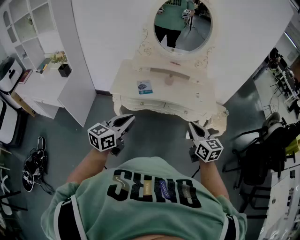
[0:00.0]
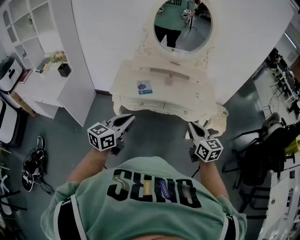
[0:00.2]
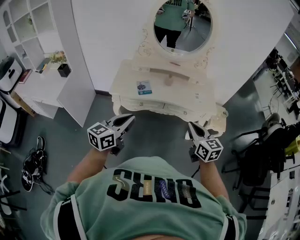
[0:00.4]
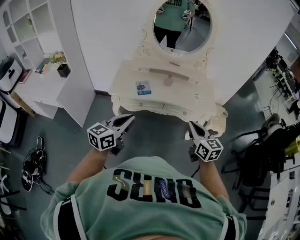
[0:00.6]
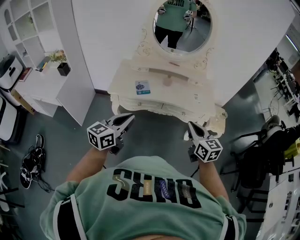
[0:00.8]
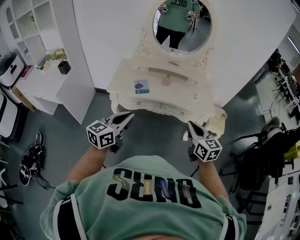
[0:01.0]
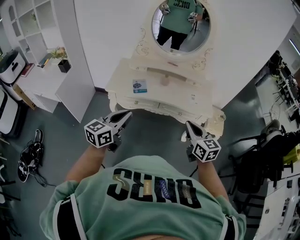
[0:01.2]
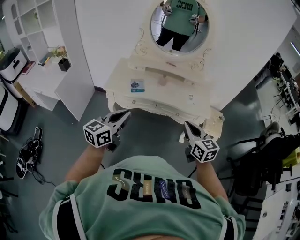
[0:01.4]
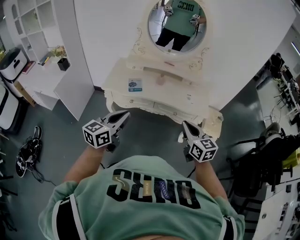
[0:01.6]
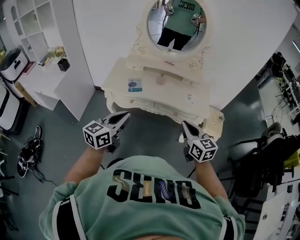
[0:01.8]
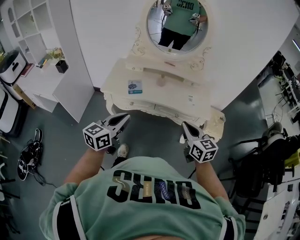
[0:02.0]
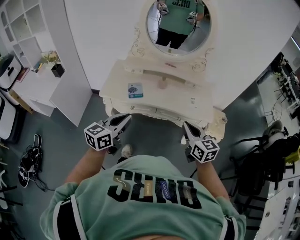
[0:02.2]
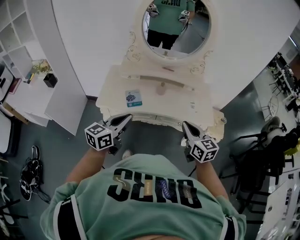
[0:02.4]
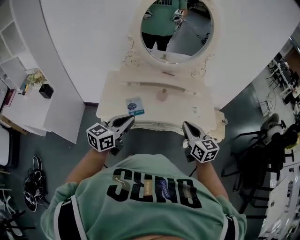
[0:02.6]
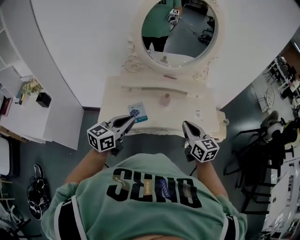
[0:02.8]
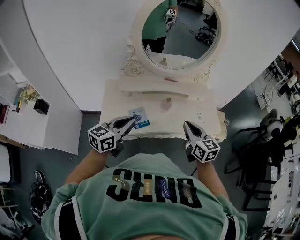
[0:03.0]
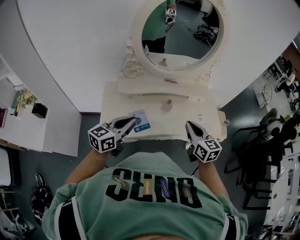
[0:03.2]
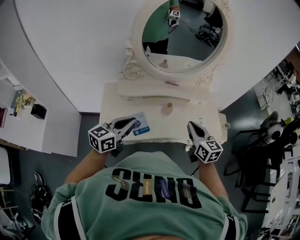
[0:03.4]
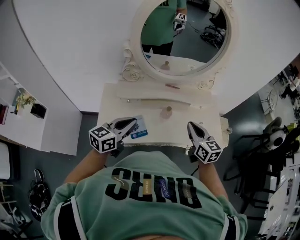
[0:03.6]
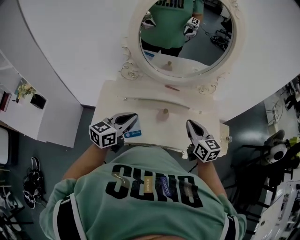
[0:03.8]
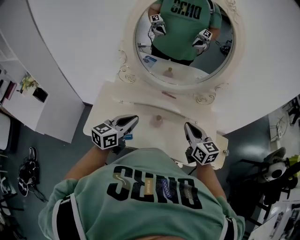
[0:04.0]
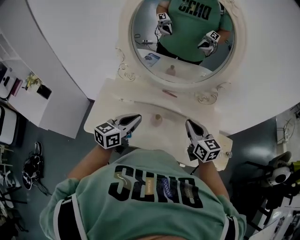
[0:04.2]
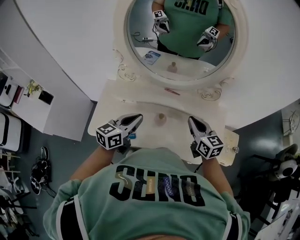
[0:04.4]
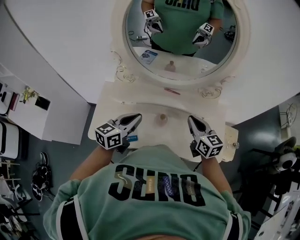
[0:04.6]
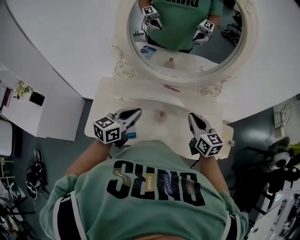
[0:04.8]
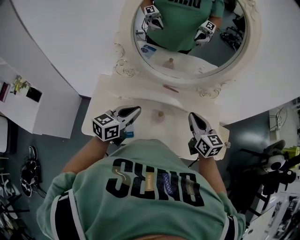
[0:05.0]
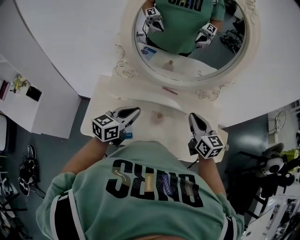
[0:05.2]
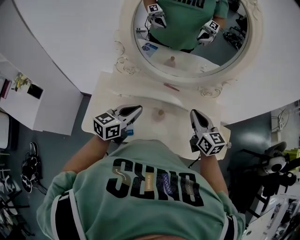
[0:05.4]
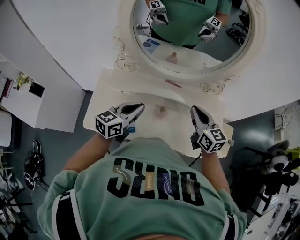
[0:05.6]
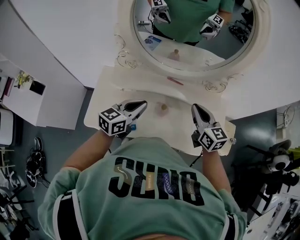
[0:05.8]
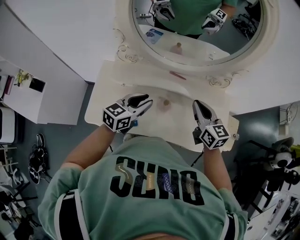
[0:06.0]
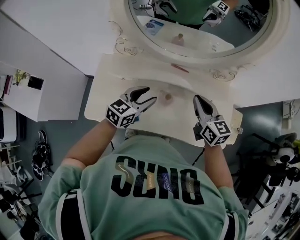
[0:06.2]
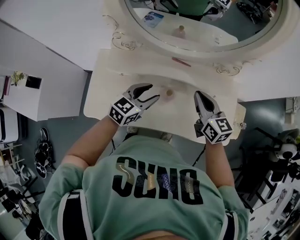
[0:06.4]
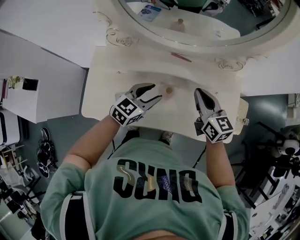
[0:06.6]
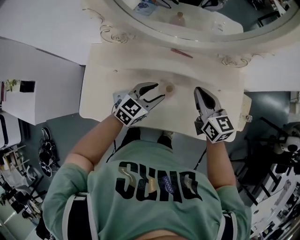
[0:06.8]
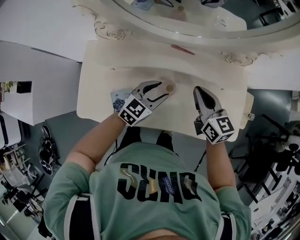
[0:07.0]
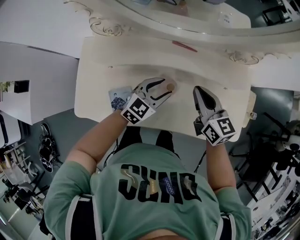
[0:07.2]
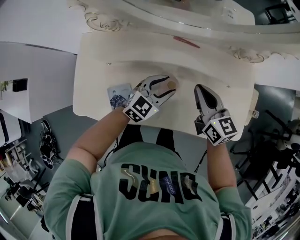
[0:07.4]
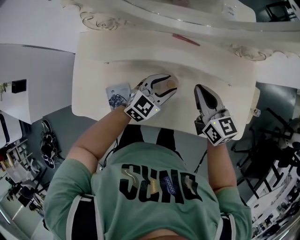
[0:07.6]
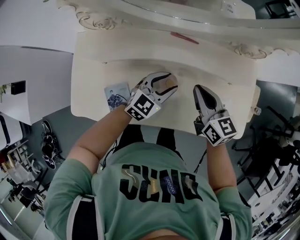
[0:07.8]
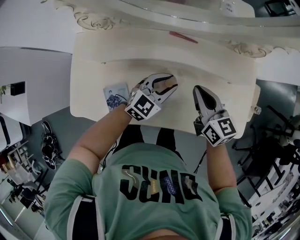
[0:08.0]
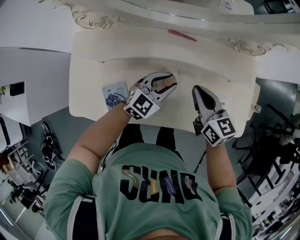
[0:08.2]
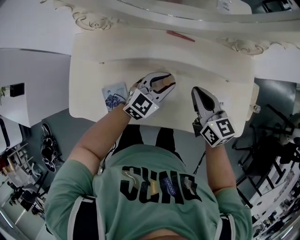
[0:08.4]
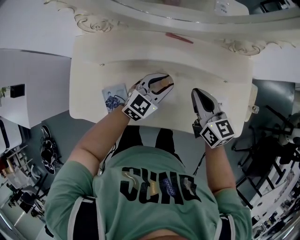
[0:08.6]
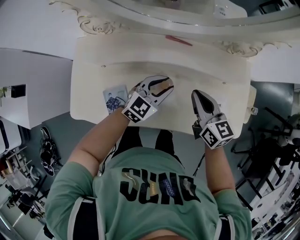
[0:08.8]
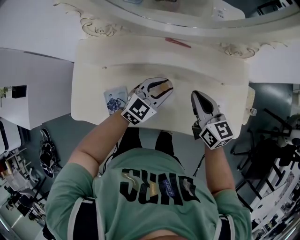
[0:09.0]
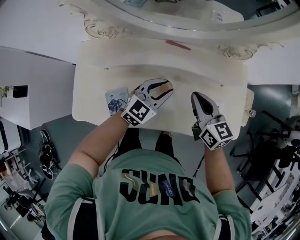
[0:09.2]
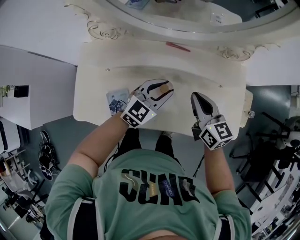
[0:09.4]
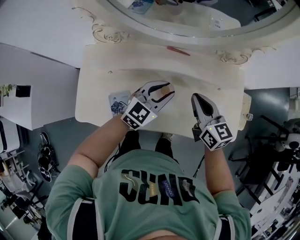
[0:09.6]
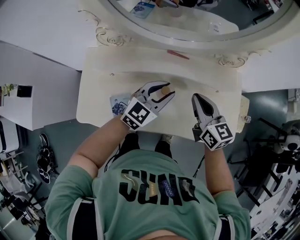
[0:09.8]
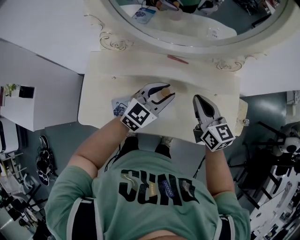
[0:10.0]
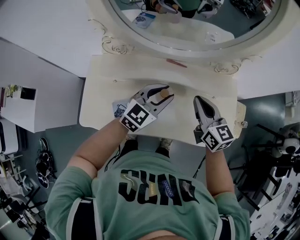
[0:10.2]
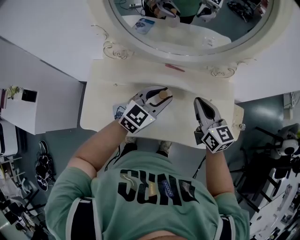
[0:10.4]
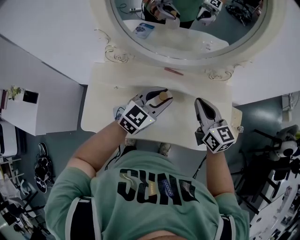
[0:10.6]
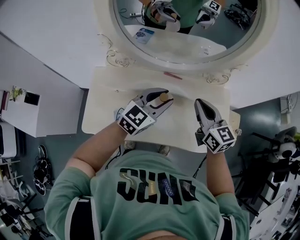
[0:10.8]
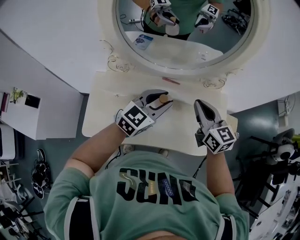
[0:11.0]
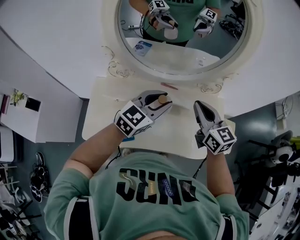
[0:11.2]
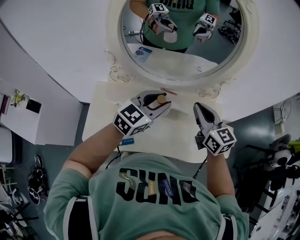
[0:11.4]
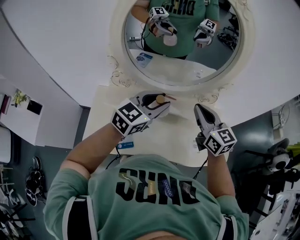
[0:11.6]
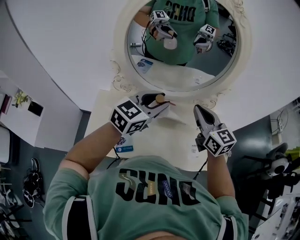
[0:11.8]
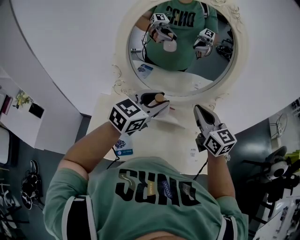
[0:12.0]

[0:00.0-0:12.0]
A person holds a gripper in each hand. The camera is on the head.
0:00.0 to 0:01.6: The two grippers go roughly 10 cm to the right.
0:01.6 to 0:03.0: The grippers both shift forward and to the left by about 35 cm.
0:03.0 to 0:04.4: The two grippers go approximately 25 cm forward and to the right.
0:04.4 to 0:06.0: The left gripper shifts by roughly 5 cm, and opens.
0:06.0 to 0:07.6: The right gripper travels downward by approximately 15 cm, while the left gripper moves downward and to the right, some 20 cm, turns by approximately 20 degrees, and opens its fingers.
0:07.6 to 0:09.0: The grippers move only a little.
0:09.0 to 0:10.4: The two grippers go approximately 15 cm upward.
0:10.4 to 0:12.0: The grippers both shift upward by some 20 cm.

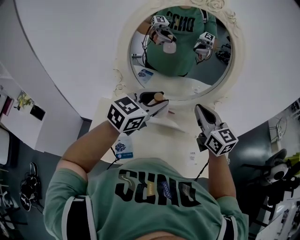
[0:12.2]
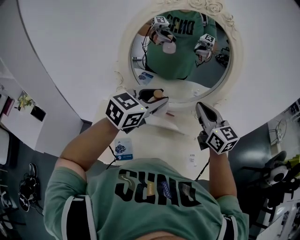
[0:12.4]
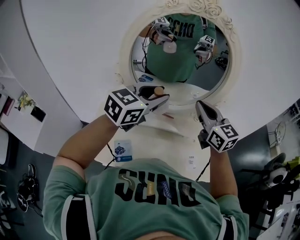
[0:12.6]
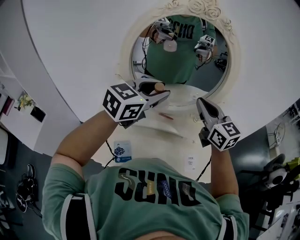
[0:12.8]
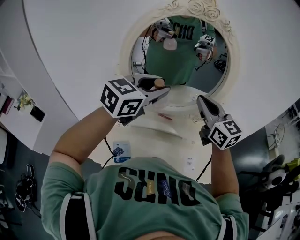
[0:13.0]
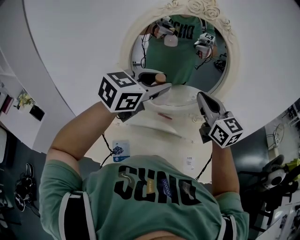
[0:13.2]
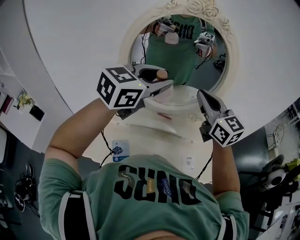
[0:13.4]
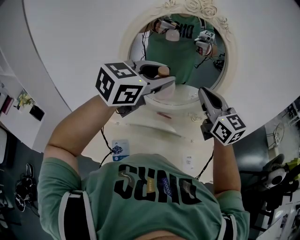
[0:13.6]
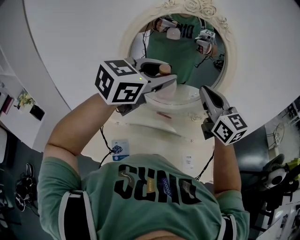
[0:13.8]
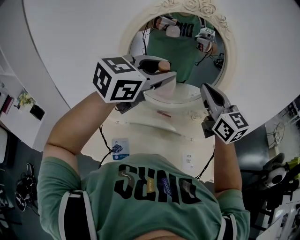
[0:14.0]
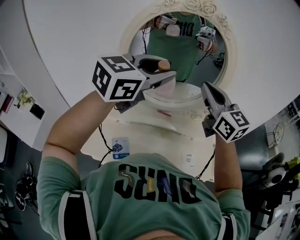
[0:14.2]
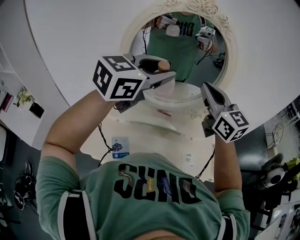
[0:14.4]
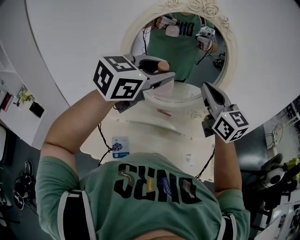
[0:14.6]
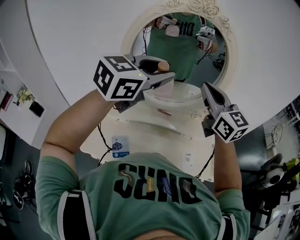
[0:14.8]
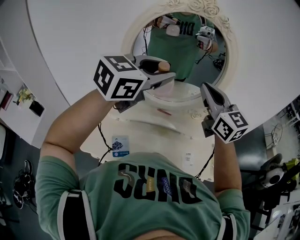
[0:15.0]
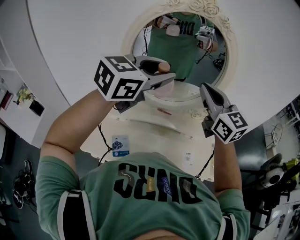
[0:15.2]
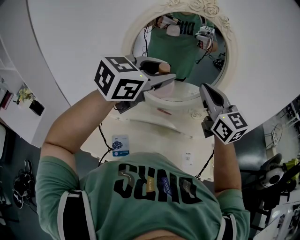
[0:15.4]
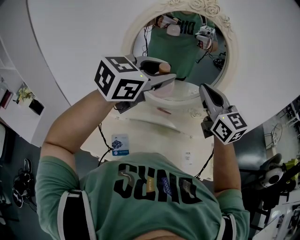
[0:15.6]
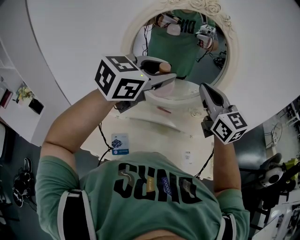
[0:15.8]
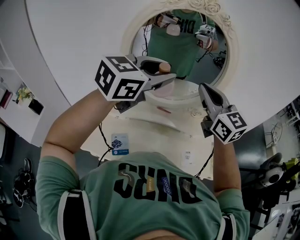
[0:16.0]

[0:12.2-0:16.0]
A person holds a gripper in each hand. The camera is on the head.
0:12.2 to 0:13.4: Both grippers move upward, roughly 10 cm.
0:13.4 to 0:14.8: The grippers make only small movements.
0:14.8 to 0:16.0: Both grippers stay put.

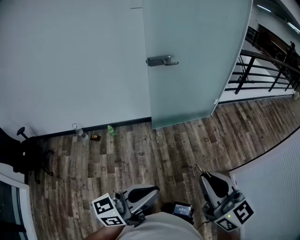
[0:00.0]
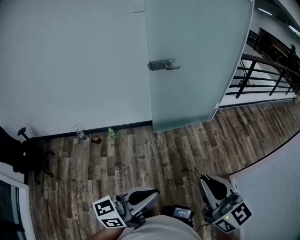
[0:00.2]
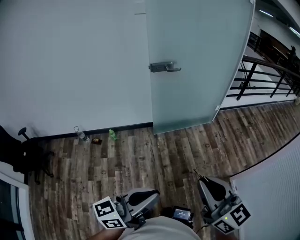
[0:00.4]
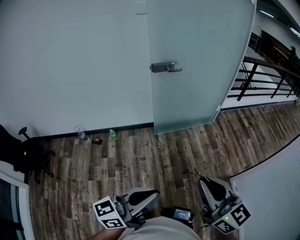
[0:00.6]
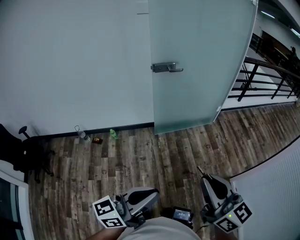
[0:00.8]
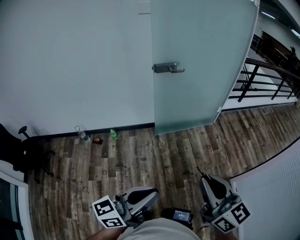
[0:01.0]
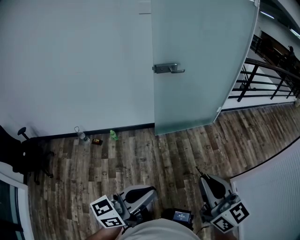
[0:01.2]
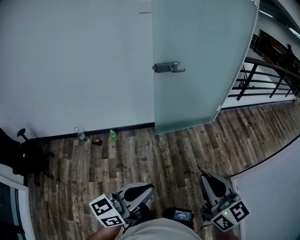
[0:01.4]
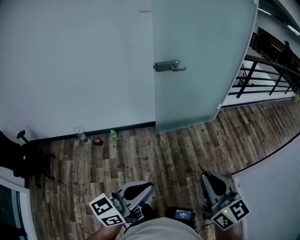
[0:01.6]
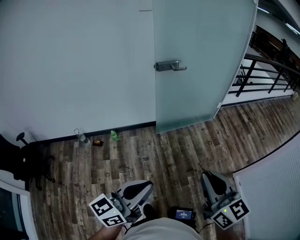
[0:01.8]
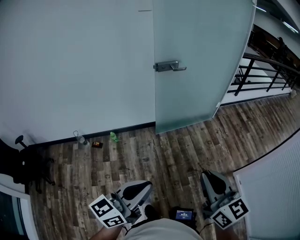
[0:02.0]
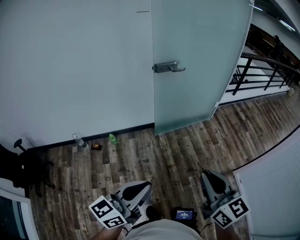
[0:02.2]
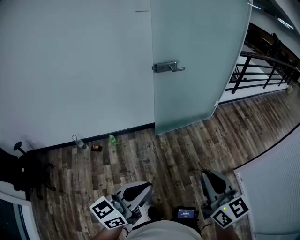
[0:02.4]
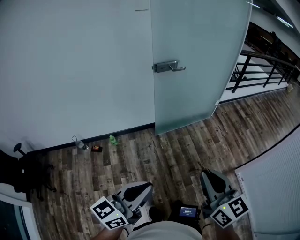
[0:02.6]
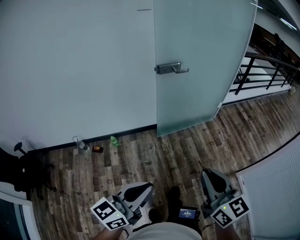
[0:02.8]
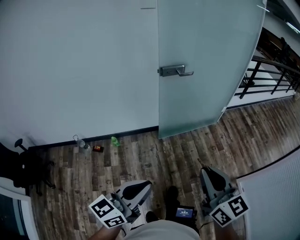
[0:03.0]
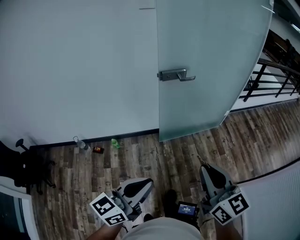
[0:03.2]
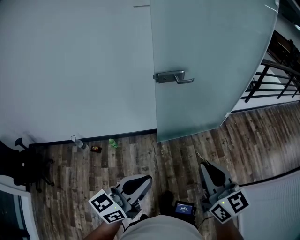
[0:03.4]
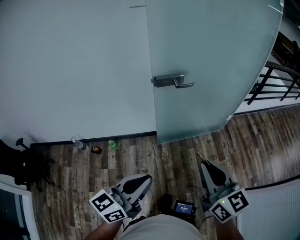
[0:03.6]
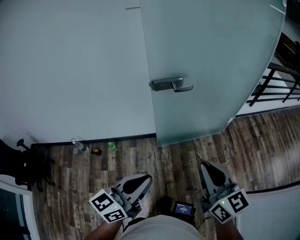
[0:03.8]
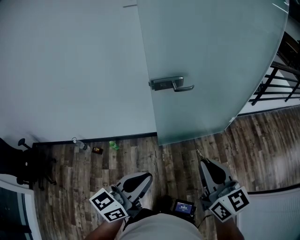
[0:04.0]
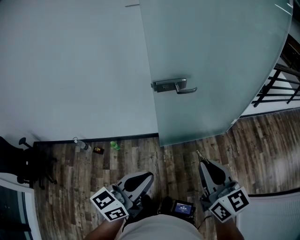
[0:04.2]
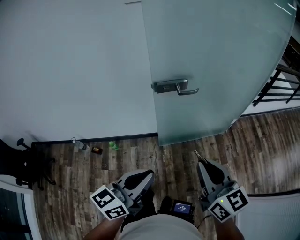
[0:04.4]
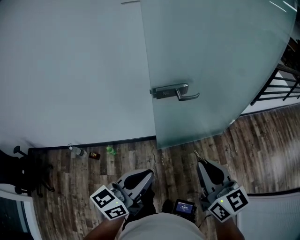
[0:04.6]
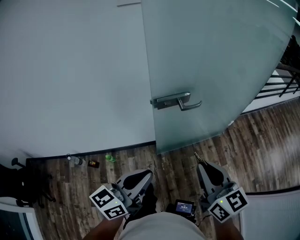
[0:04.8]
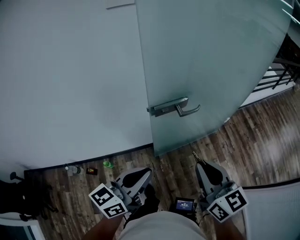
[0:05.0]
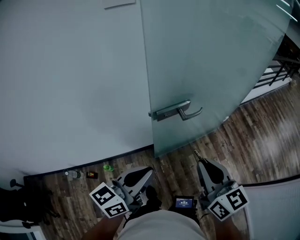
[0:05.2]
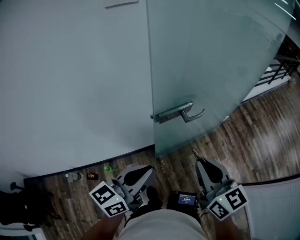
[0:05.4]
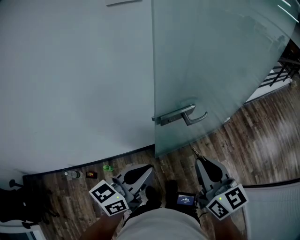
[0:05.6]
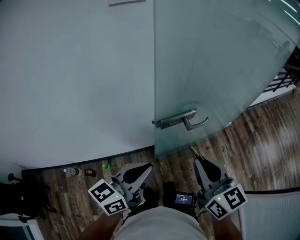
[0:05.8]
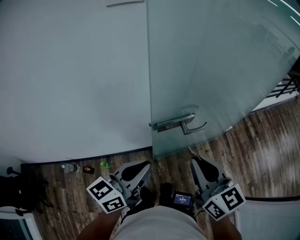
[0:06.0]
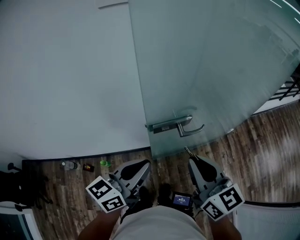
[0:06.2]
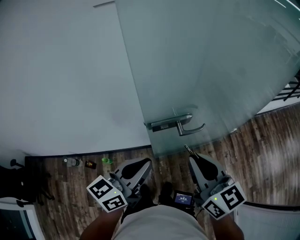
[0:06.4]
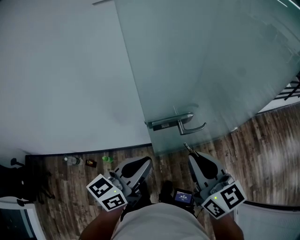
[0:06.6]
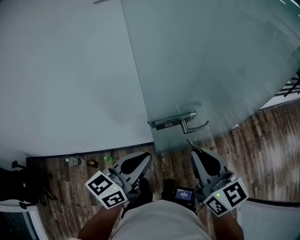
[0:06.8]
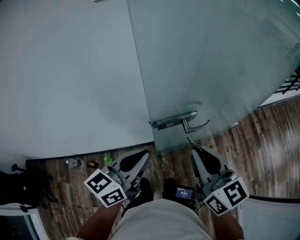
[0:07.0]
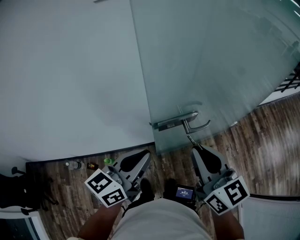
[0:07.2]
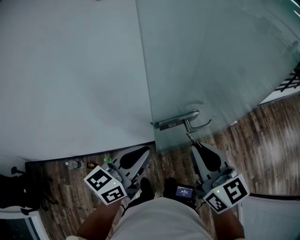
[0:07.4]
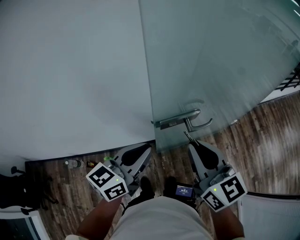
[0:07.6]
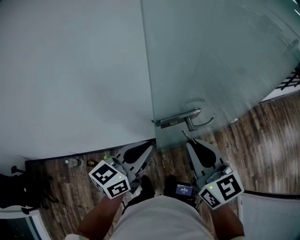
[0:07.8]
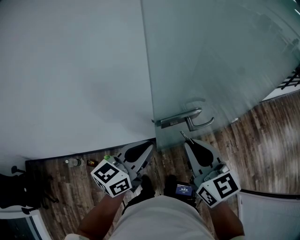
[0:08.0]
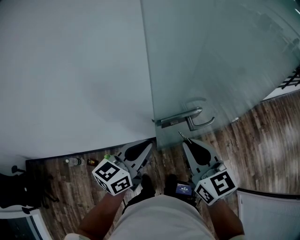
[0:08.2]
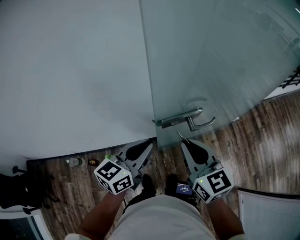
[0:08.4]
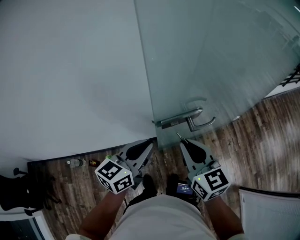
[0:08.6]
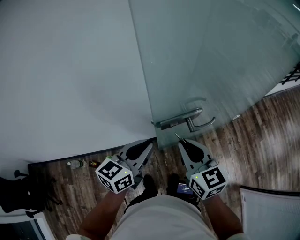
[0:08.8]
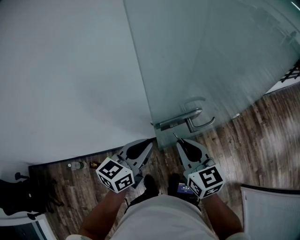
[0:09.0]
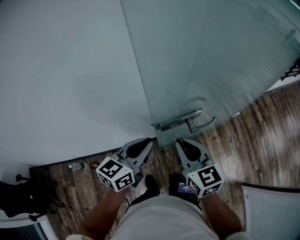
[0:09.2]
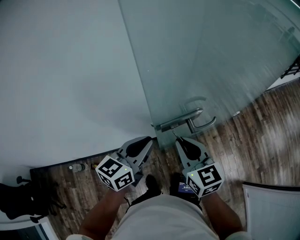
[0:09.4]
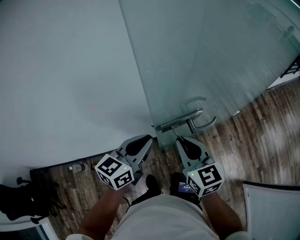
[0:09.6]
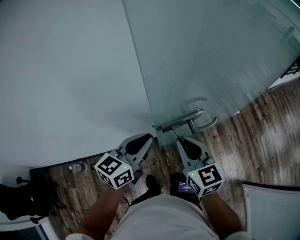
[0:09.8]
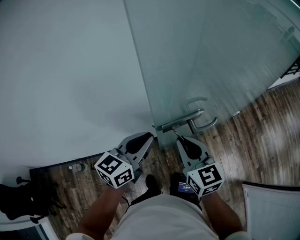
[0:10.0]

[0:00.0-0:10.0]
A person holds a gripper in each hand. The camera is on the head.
0:00.0 to 0:01.4: The left gripper is displaced to the left by about 5 cm.
0:01.4 to 0:02.8: The grippers both shift to the left by roughly 10 cm.
0:02.8 to 0:04.2: Both grippers travel together forward, roughly 25 cm.
0:04.2 to 0:05.8: Both grippers move forward and to the left, about 25 cm.
0:05.8 to 0:07.2: Both grippers move forward, approximately 5 cm.
0:07.2 to 0:08.6: Both grippers travel together downward, approximately 5 cm.
0:08.6 to 0:10.0: There are only small adjustments of the grippers.
